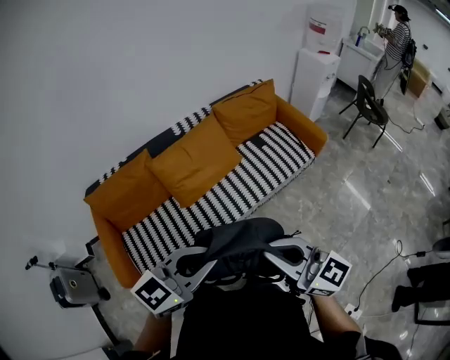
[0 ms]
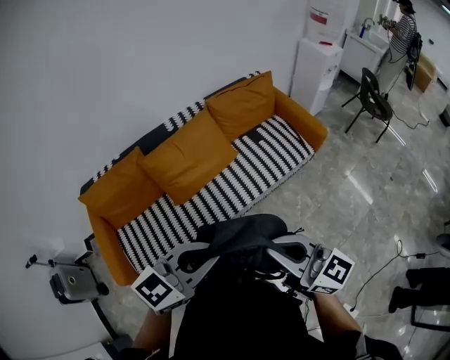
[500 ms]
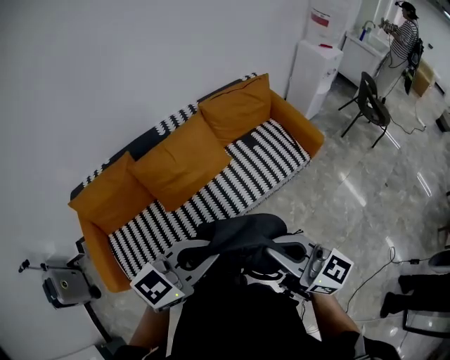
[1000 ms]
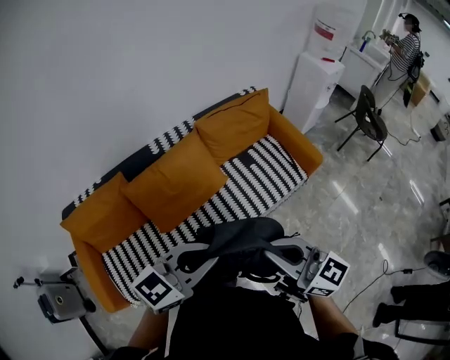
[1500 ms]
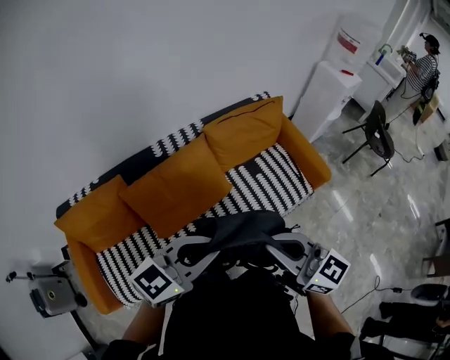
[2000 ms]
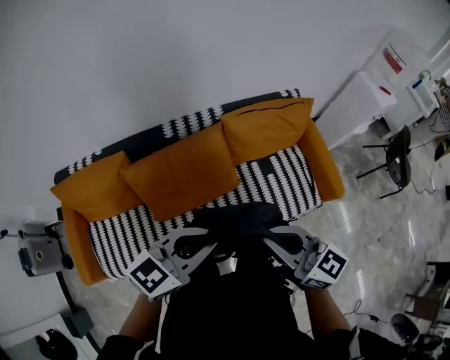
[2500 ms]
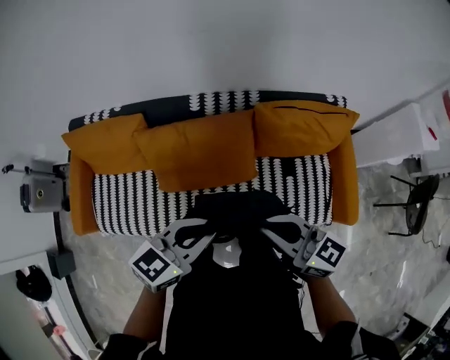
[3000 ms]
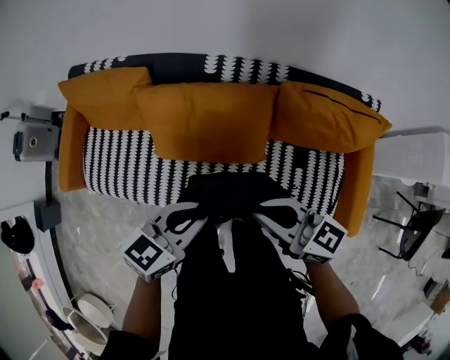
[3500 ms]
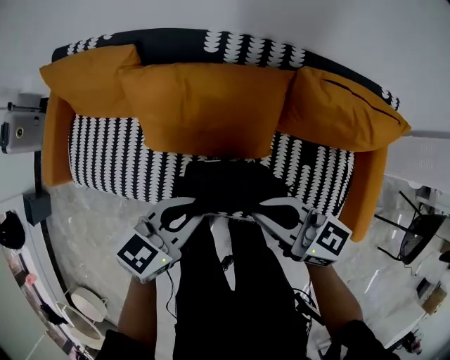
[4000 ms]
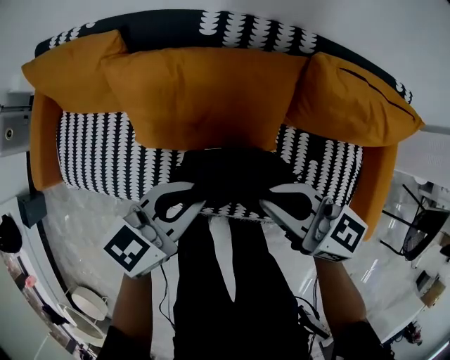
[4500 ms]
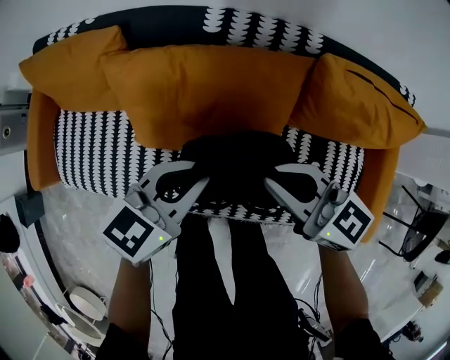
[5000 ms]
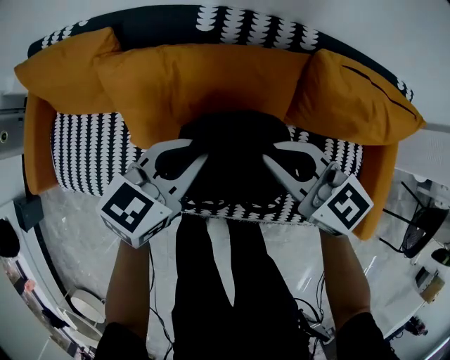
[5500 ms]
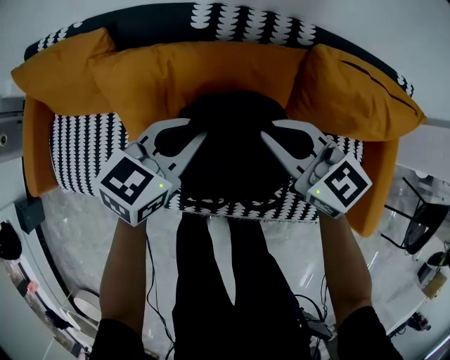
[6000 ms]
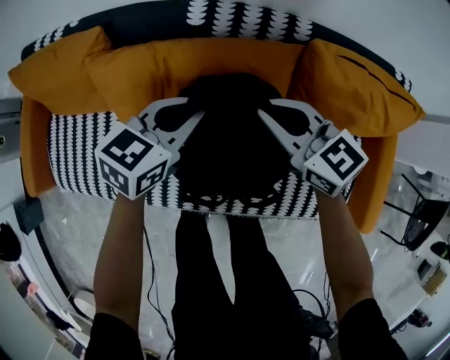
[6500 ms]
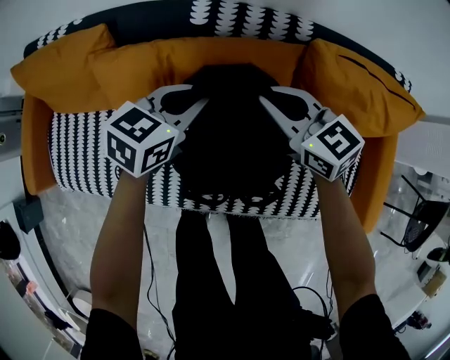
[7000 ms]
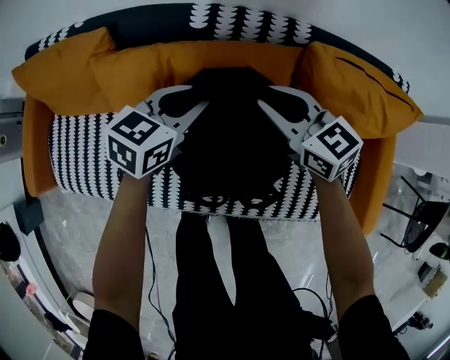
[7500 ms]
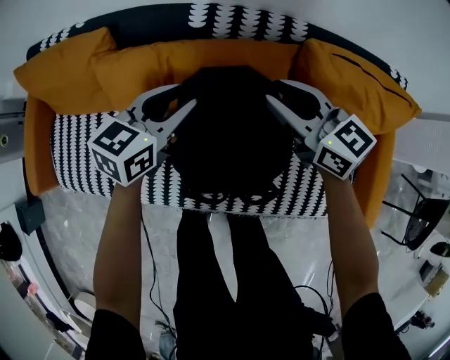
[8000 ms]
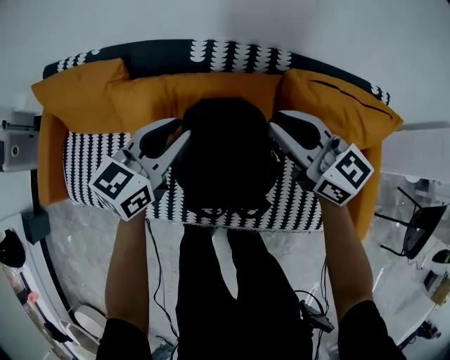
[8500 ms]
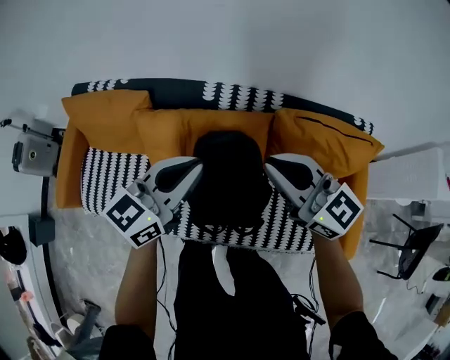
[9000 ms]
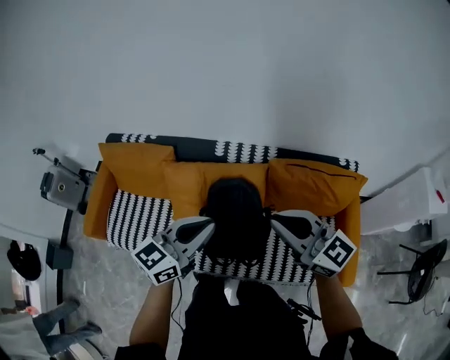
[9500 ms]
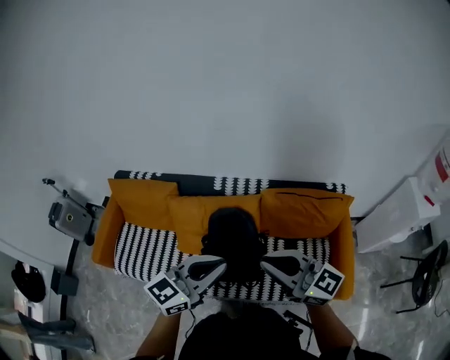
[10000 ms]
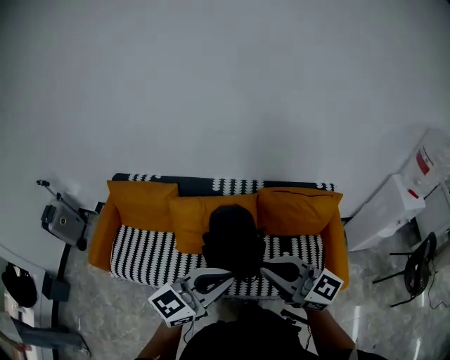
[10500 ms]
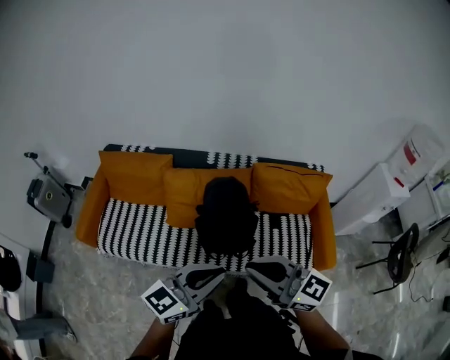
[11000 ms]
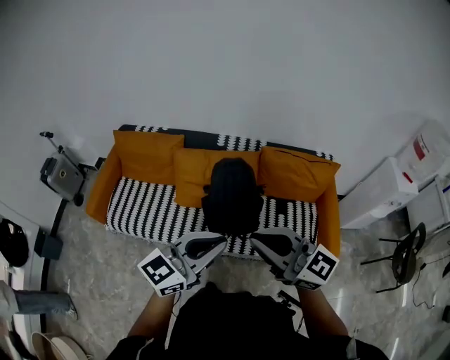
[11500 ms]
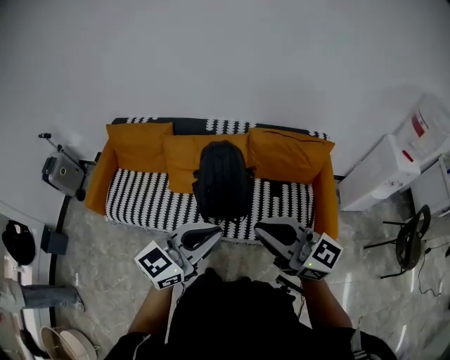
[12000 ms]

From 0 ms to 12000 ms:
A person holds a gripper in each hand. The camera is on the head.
From 0 ms to 2000 ms: Both grippers travel together forward, about 30 cm.
From 2000 ms to 4000 ms: Both grippers move downward, about 25 cm. The left gripper rotates approximately 50 degrees, while the right gripper swivels some 50 degrees.
From 4000 ms to 6000 ms: Both grippers move forward and downward, roughly 15 cm. The right gripper changes its angle by approximately 30 degrees.
From 6000 ms to 8000 ms: The two grippers go roughly 5 cm forward. The right gripper opens up. The left gripper opens its fingers.
From 8000 ms to 10000 ms: The grippers both shift upward and backward by about 40 cm. The right gripper changes its angle by approximately 30 degrees, and closes up; the left gripper changes its angle by some 20 degrees, and closes its fingers.
From 10000 ms to 12000 ms: Both grippers travel together backward, approximately 20 cm.

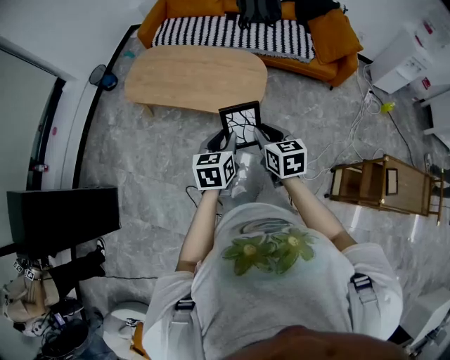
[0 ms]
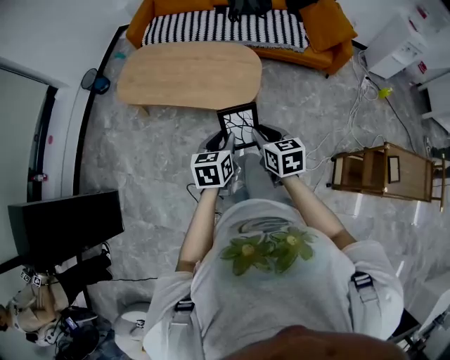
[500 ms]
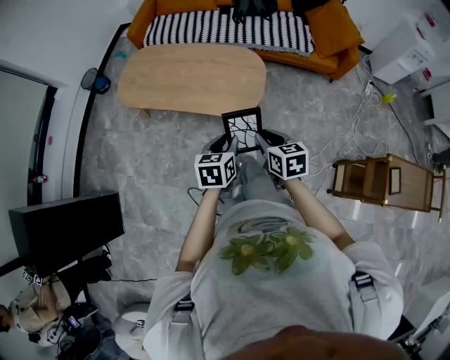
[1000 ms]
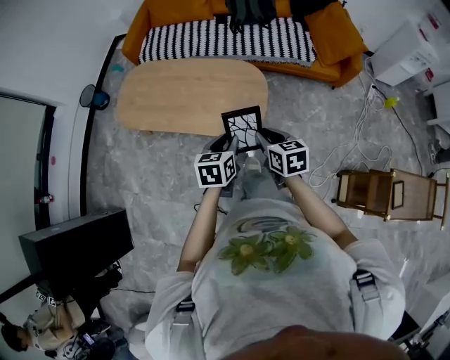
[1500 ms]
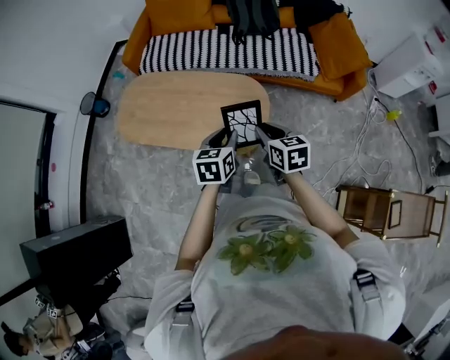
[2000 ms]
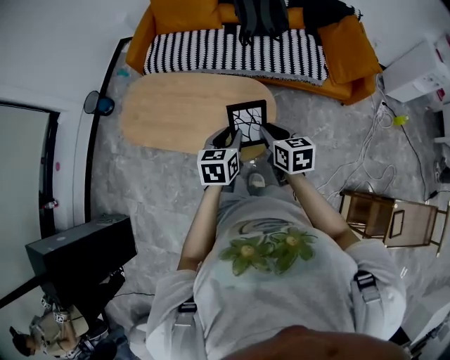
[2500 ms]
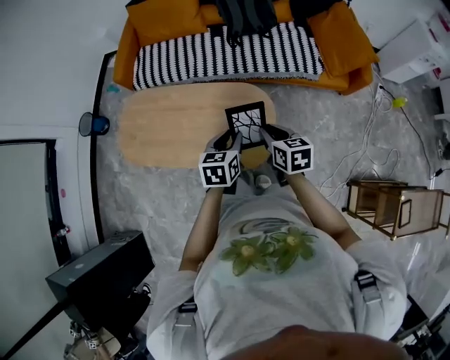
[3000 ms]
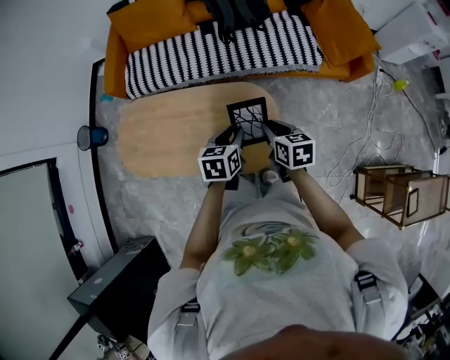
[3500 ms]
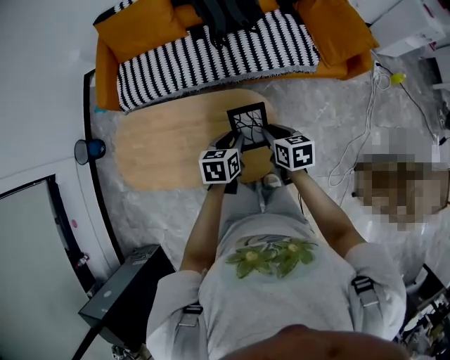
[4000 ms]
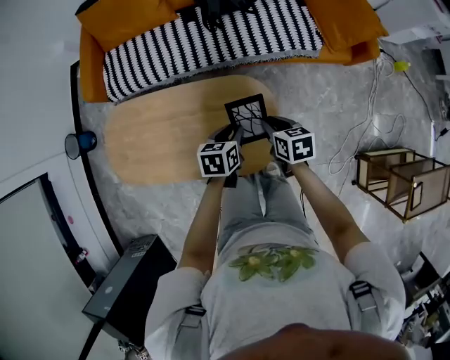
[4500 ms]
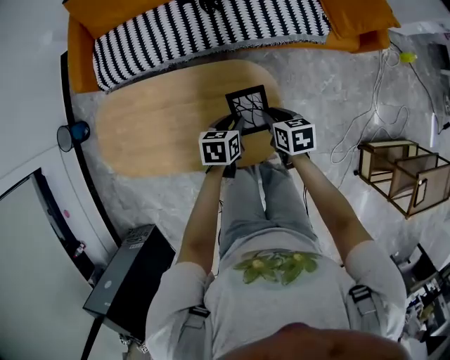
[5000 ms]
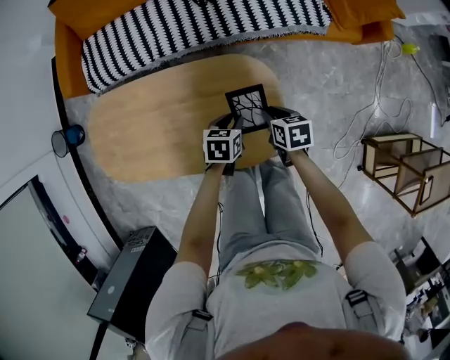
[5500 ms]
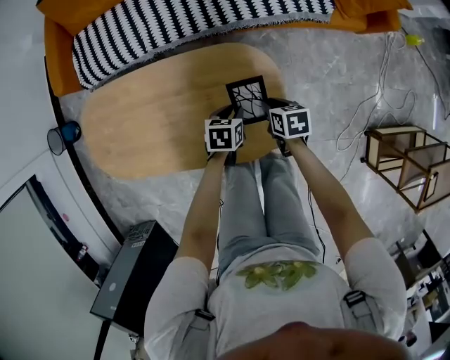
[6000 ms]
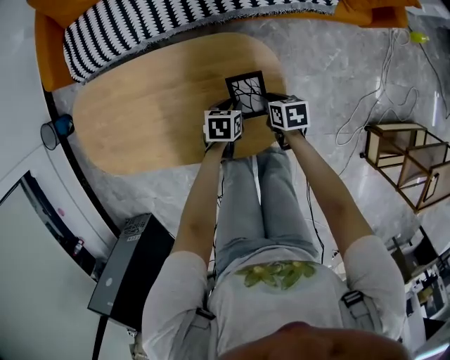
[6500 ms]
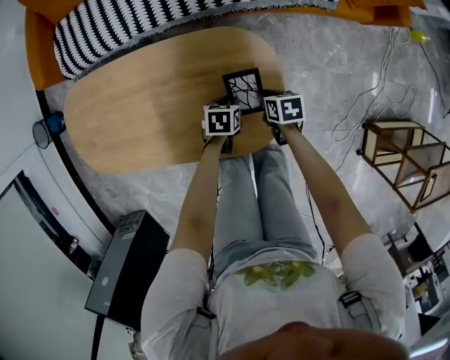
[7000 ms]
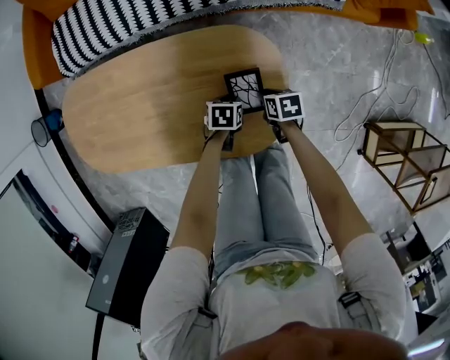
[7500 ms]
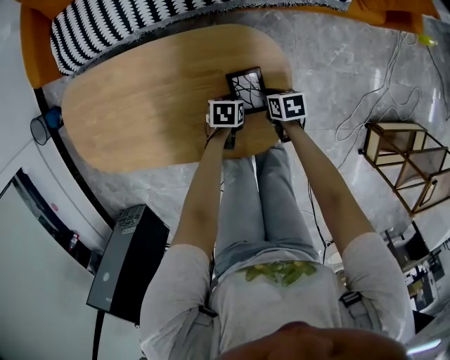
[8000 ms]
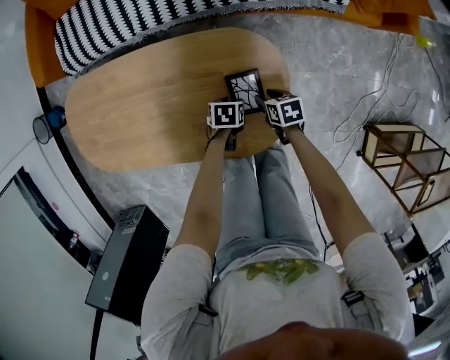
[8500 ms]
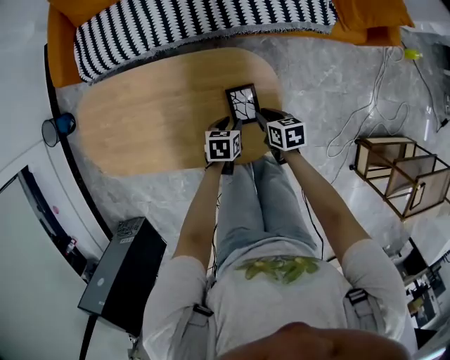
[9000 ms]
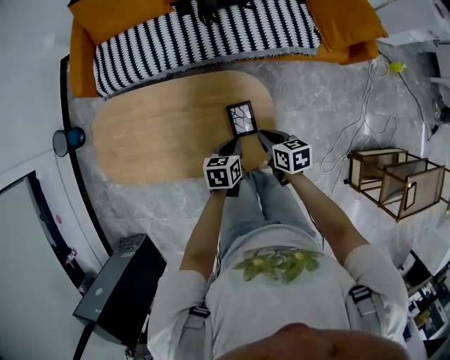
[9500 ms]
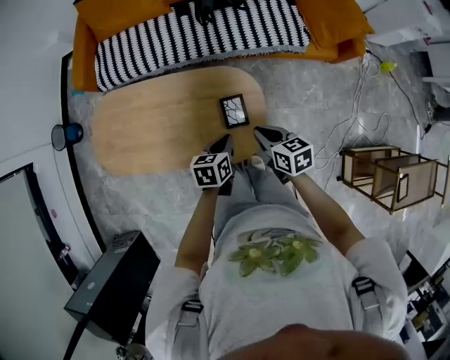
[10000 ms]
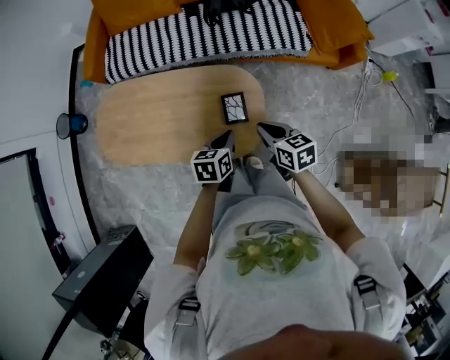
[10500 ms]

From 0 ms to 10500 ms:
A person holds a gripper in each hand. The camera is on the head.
From 0 ms to 2000 ms: Both grippers travel together forward, approximately 25 cm.
From 2000 ms to 4000 ms: Both grippers move forward and downward, roughly 20 cm. The left gripper rotates some 20 degrees.
From 4000 ms to 6500 ms: The grippers both shift downward by approximately 30 cm. The right gripper swivels approximately 20 degrees. The left gripper changes its angle by about 20 degrees.
From 6500 ms to 8500 ms: Both grippers move downward, some 5 cm. The right gripper opens up; the left gripper opens its fingers.
From 8500 ms to 10500 ms: Both grippers travel together upward, approximately 35 cm. The right gripper swivels about 30 degrees, and closes, while the left gripper swivels approximately 30 degrees, and closes.

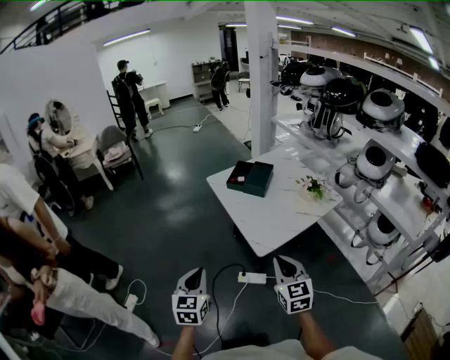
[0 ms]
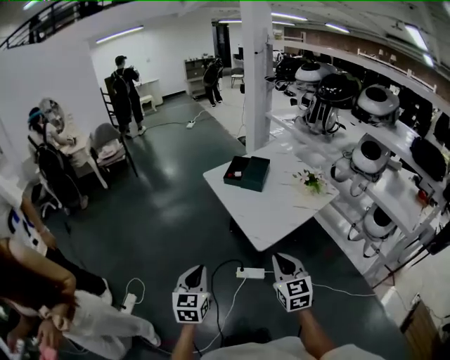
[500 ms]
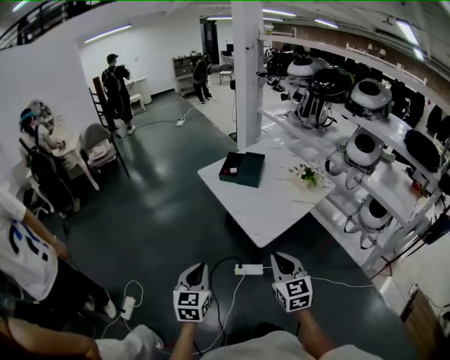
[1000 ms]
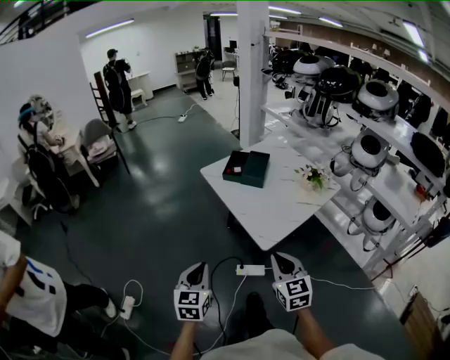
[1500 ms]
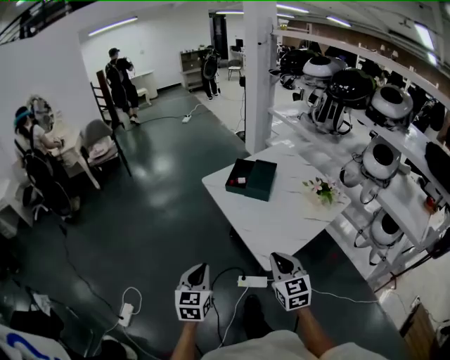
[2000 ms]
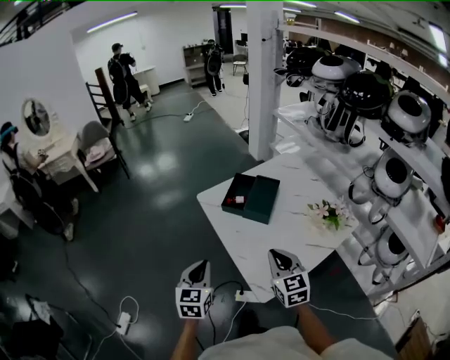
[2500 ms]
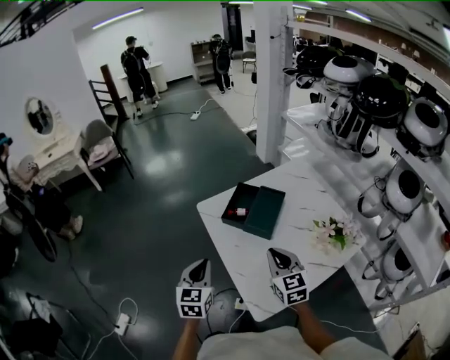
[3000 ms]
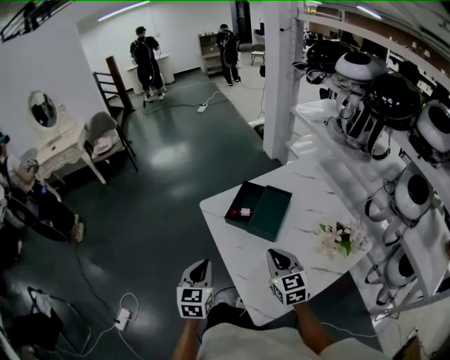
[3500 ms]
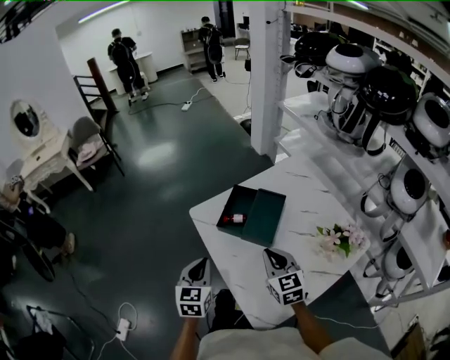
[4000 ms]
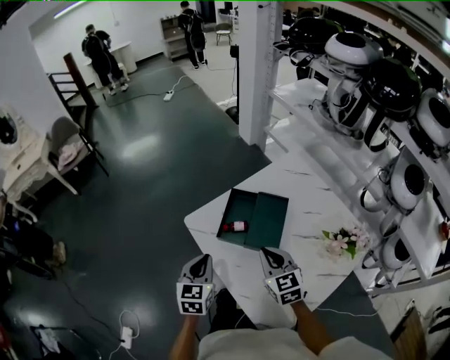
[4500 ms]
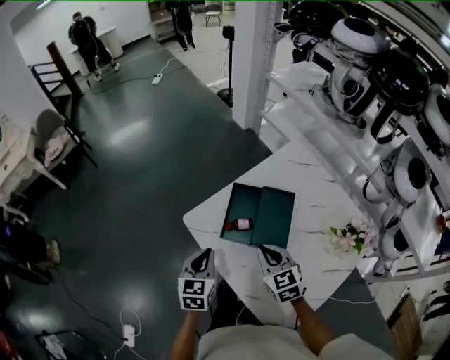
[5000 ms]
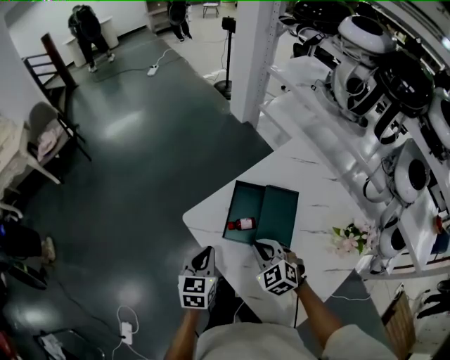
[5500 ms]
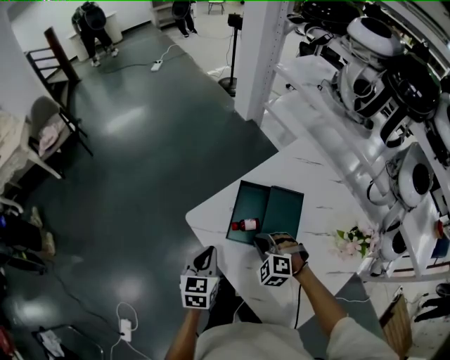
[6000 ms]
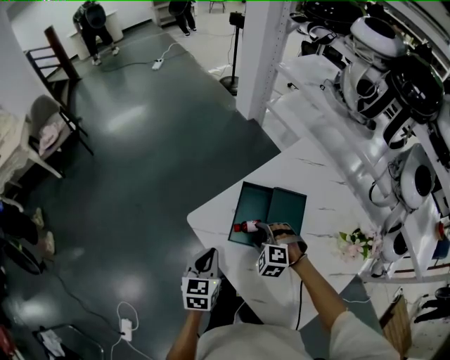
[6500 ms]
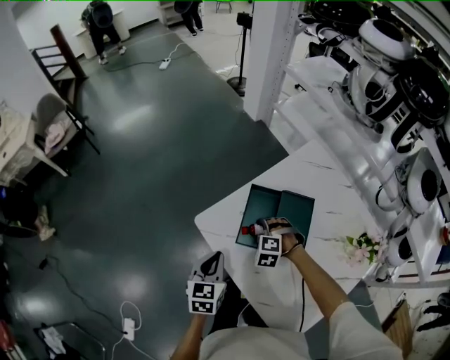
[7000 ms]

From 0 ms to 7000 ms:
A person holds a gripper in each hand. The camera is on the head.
From 0 ms to 2000 ms: Both grippers move forward, some 15 cm.
From 2000 ms to 3500 ms: The two grippers go about 30 cm forward.
From 3500 ms to 5000 ms: The left gripper goes roughly 20 cm forward, while the right gripper shifts approximately 20 cm forward and downward.
From 5000 ms to 7000 ms: The right gripper is displaced downward and forward by approximately 20 cm, rolls counterclockwise, seen from behind, by about 60 degrees, and opens.
